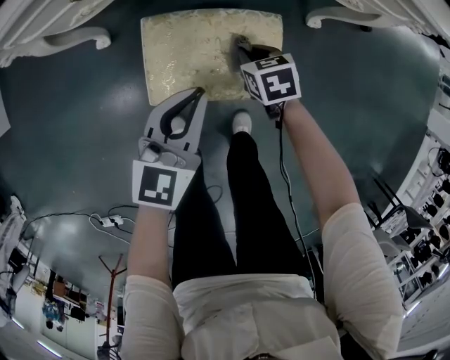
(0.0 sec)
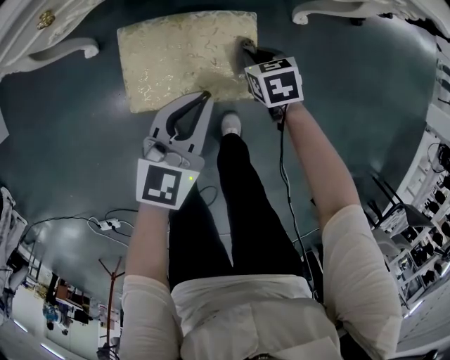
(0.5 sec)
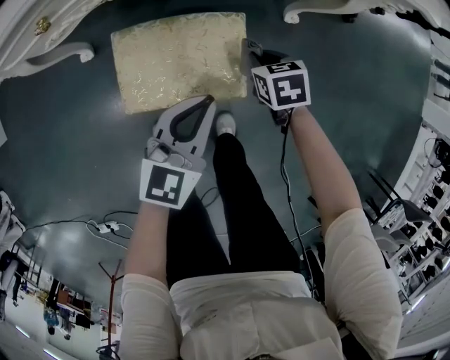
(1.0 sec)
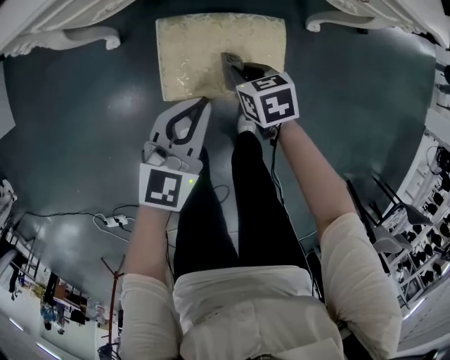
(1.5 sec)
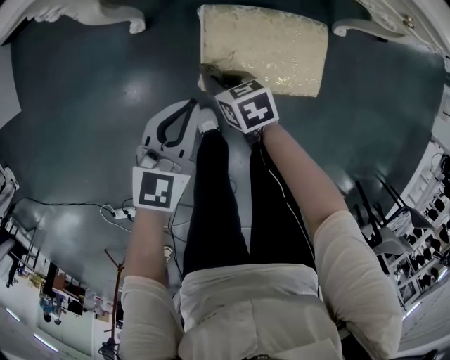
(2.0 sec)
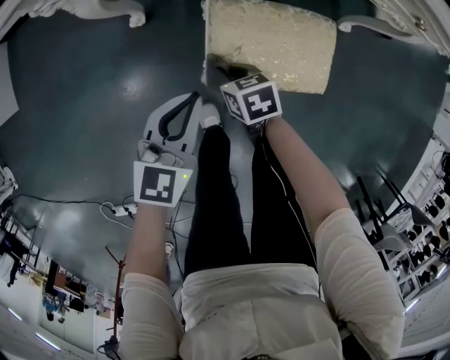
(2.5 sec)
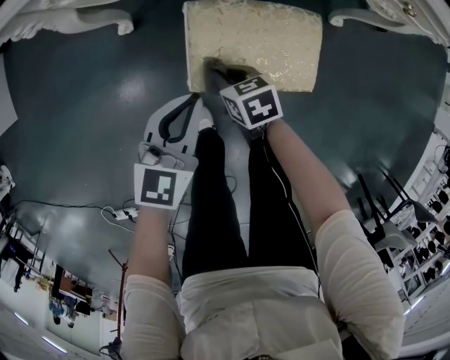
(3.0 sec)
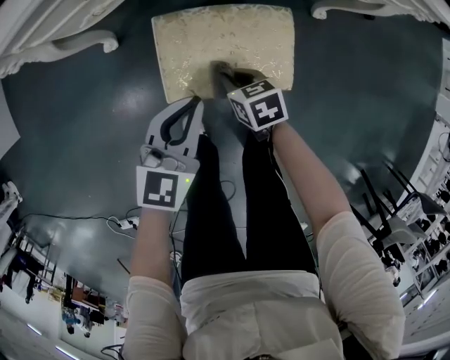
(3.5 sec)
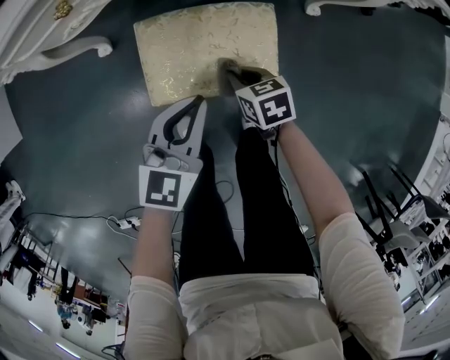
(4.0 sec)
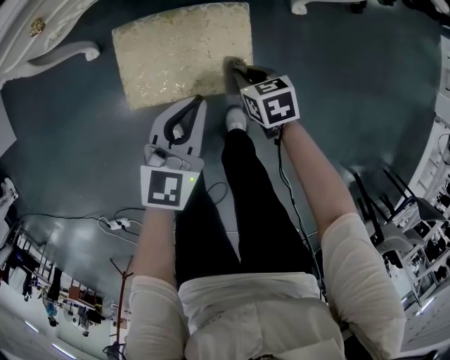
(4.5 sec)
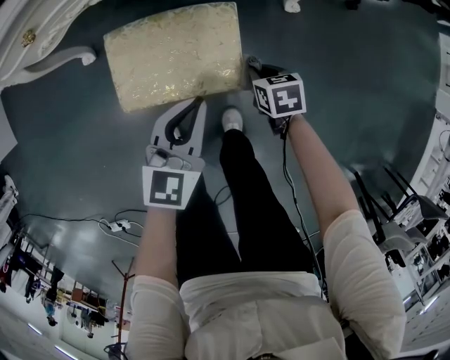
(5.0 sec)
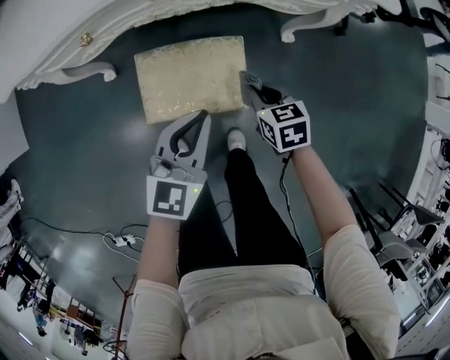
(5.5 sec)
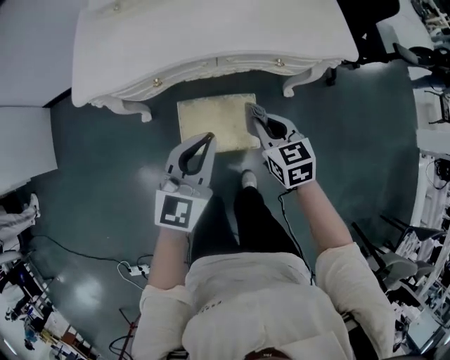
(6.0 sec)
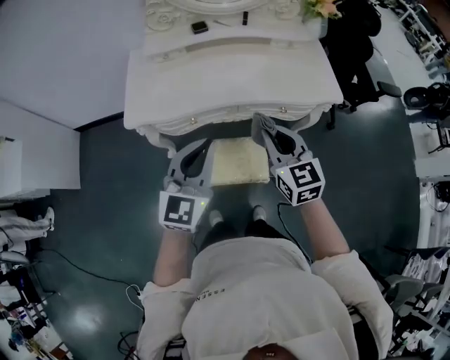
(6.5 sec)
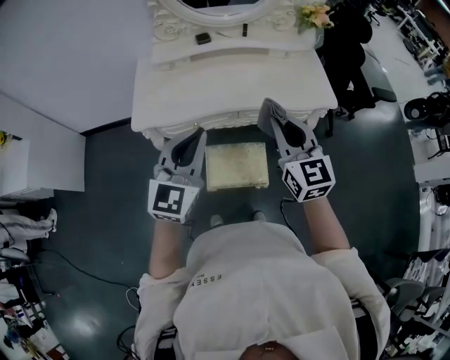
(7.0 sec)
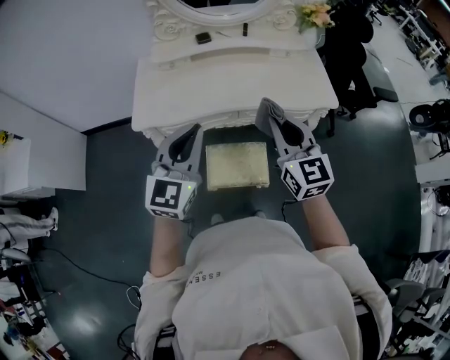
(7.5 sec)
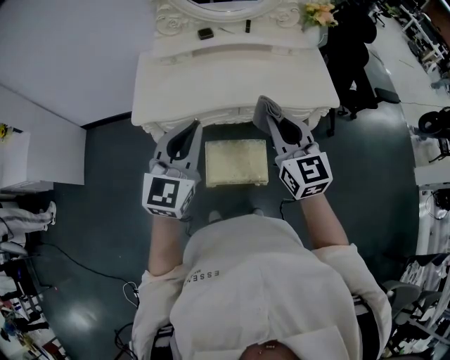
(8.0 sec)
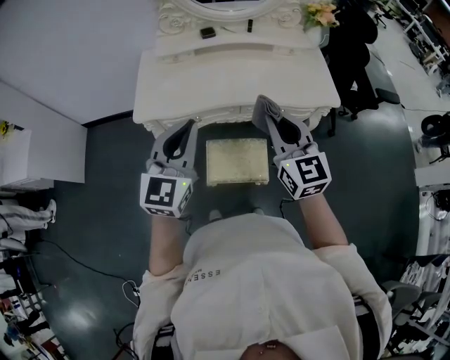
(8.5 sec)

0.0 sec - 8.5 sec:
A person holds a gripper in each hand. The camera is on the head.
0.0 sec - 2.0 sec: The two grippers go roughly 20 cm to the left.
2.0 sec - 4.0 sec: The two grippers go roughly 20 cm to the right.
4.0 sec - 6.5 sec: The grippers both shift upward by roughly 50 cm. The left gripper swivels roughly 30 degrees; the right gripper tips its fingers upward by approximately 40 degrees.
6.5 sec - 8.5 sec: Both grippers move upward, approximately 10 cm.

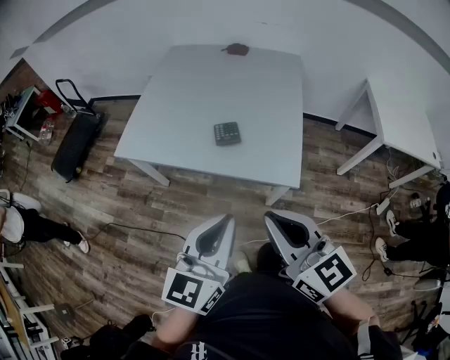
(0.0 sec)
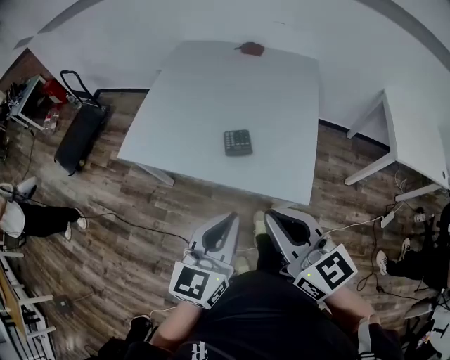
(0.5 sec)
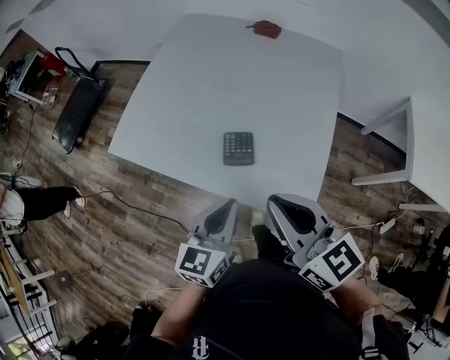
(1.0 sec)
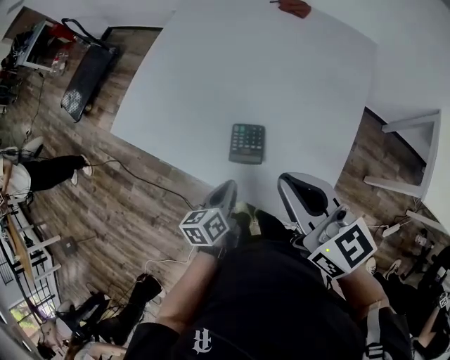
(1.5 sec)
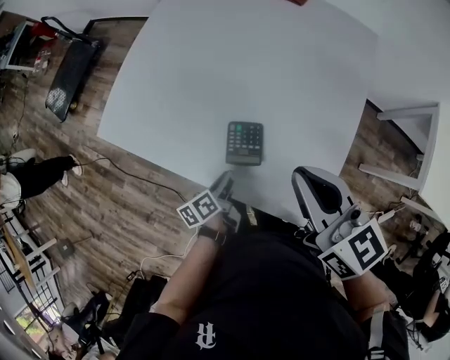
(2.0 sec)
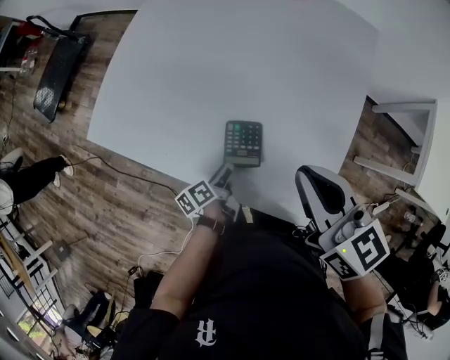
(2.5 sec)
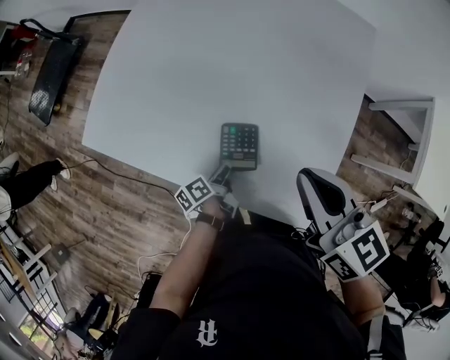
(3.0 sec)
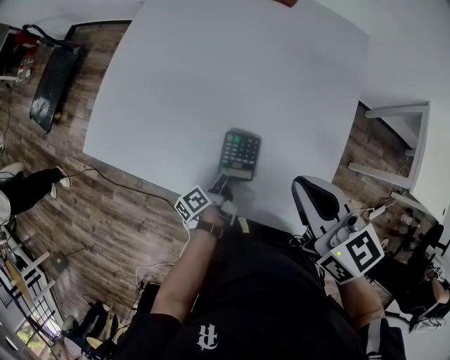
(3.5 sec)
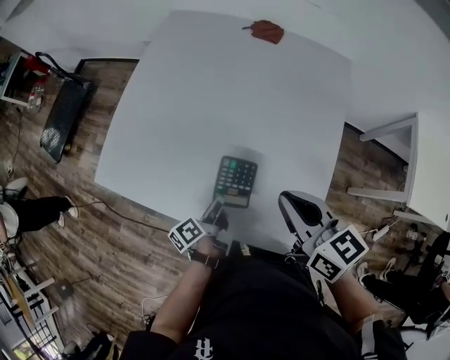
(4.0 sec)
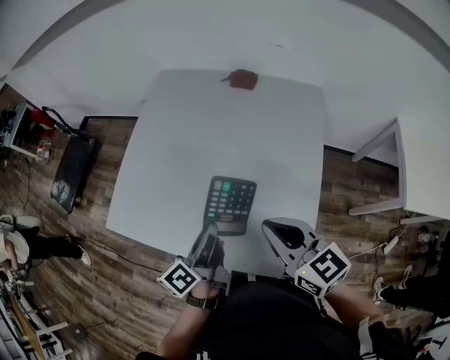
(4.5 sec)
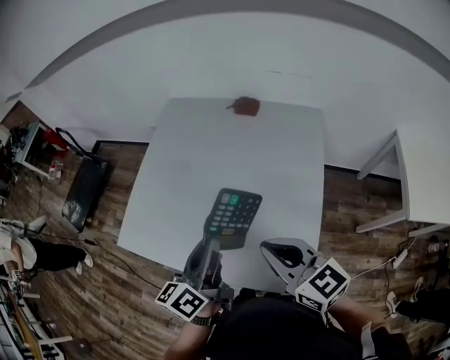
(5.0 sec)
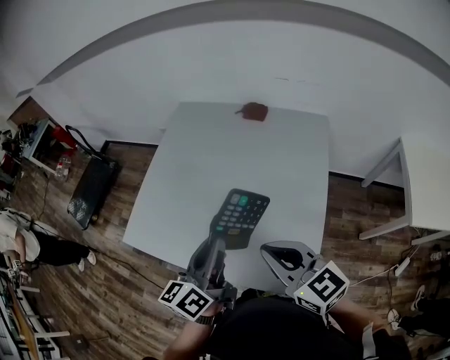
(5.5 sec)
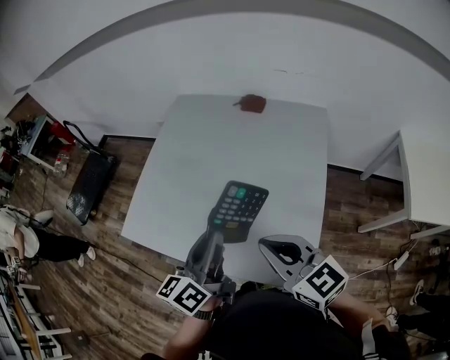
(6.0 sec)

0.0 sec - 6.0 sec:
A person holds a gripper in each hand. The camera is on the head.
0.0 sec - 2.0 sec: The right gripper travels forward by approximately 35 cm. The left gripper travels downward and forward by approximately 50 cm, and rotates around the line of its fingers by approximately 60 degrees, counterclockwise from behind.
2.0 sec - 4.0 sec: The left gripper heads forward, covering about 5 cm.
4.0 sec - 6.0 sec: The left gripper travels upward by some 30 cm, and twists roughly 40 degrees clockwise, seen from behind. Meanwhile the right gripper is displaced upward and backward by roughly 10 cm.

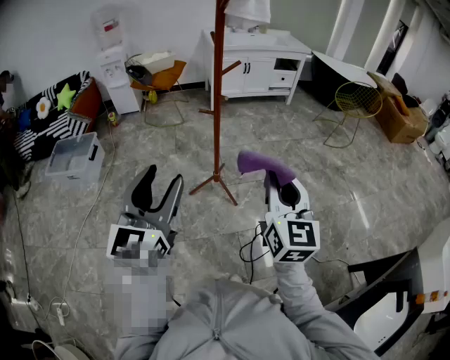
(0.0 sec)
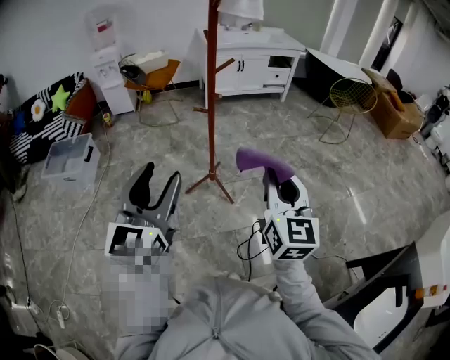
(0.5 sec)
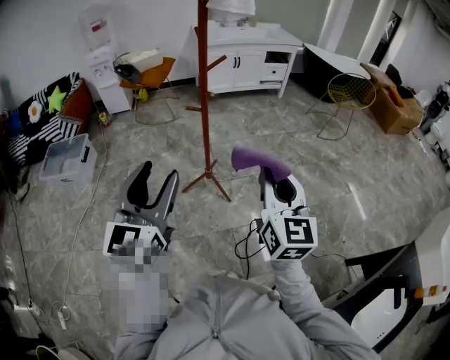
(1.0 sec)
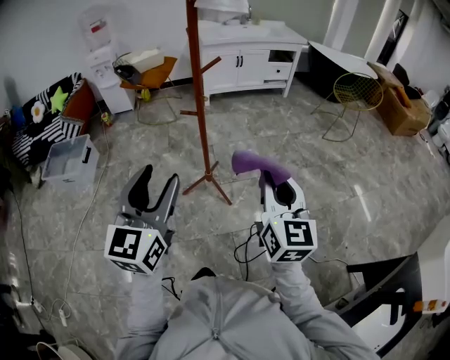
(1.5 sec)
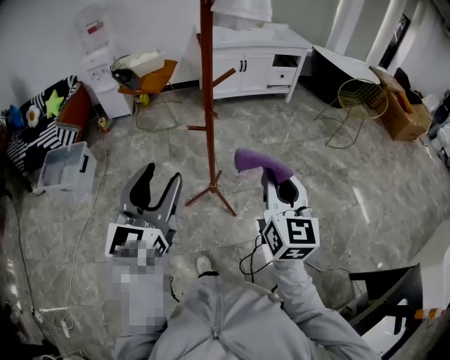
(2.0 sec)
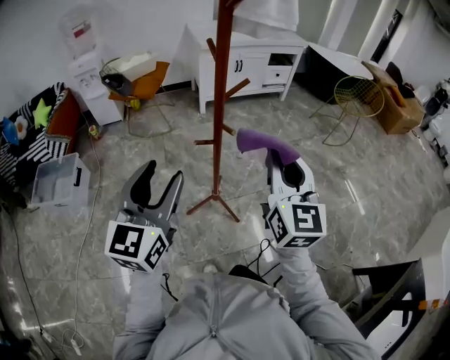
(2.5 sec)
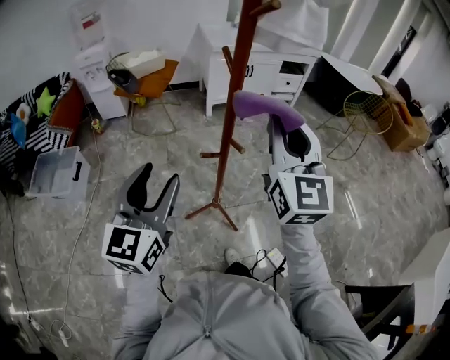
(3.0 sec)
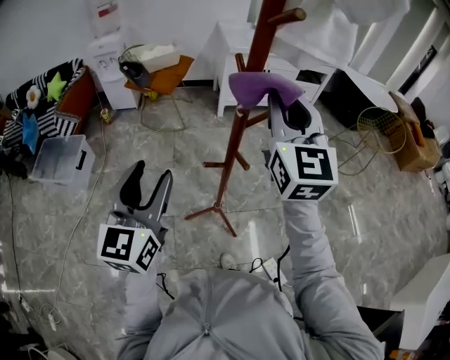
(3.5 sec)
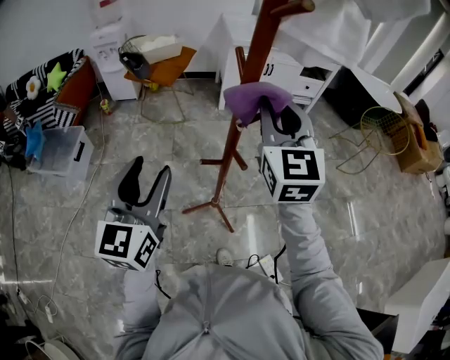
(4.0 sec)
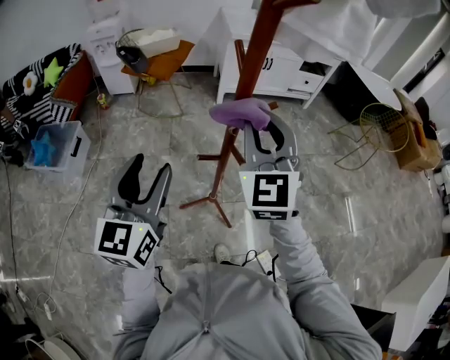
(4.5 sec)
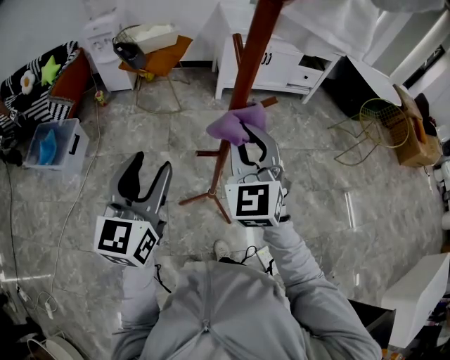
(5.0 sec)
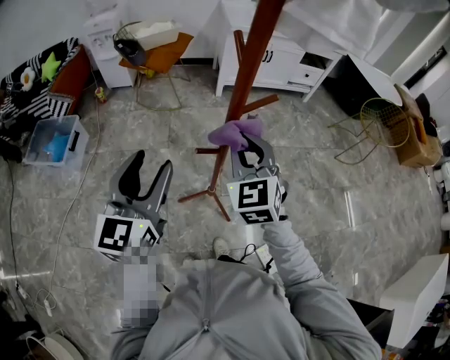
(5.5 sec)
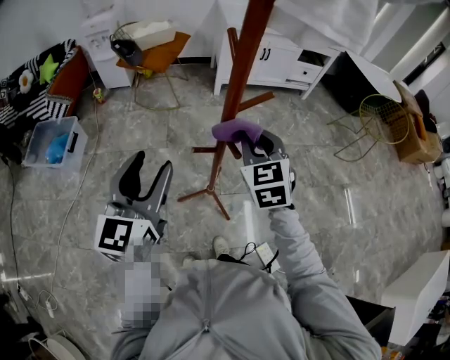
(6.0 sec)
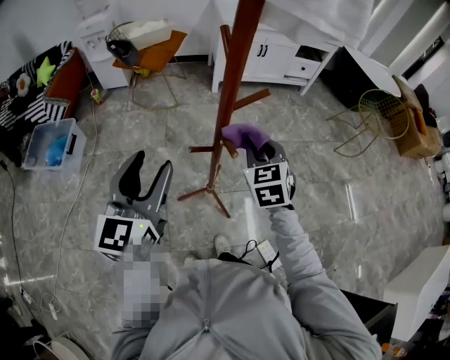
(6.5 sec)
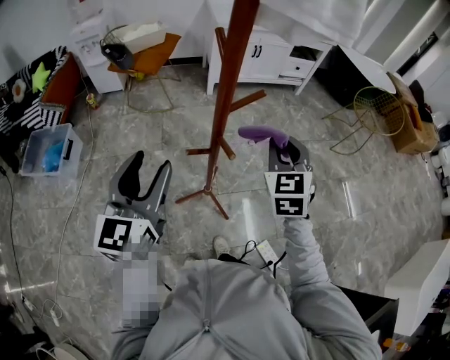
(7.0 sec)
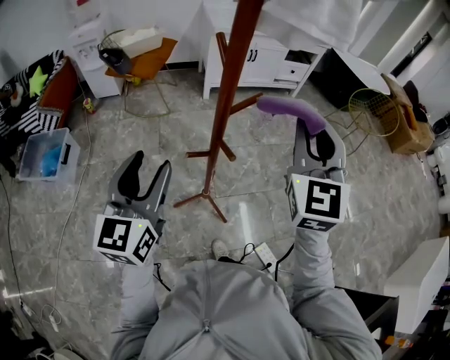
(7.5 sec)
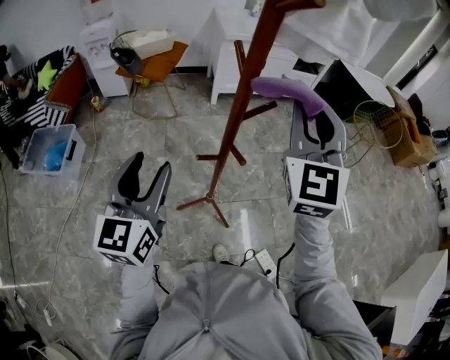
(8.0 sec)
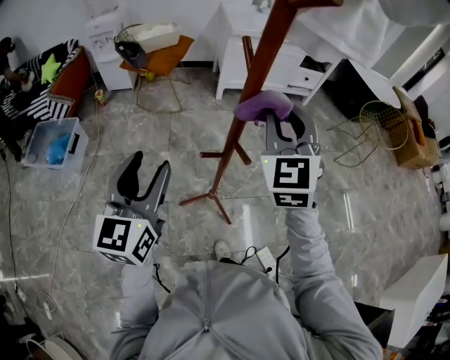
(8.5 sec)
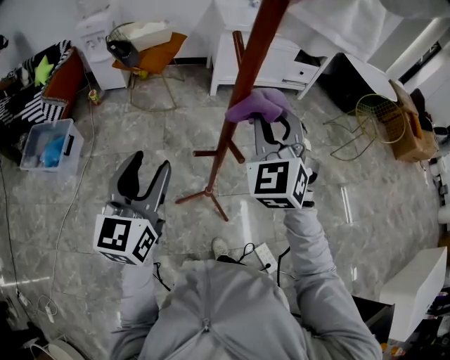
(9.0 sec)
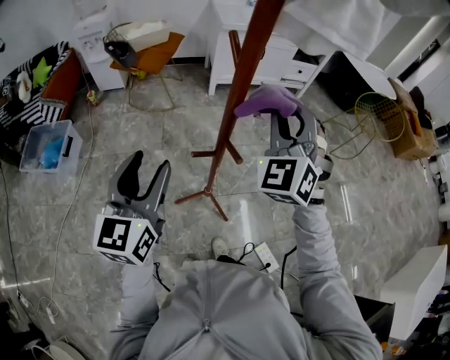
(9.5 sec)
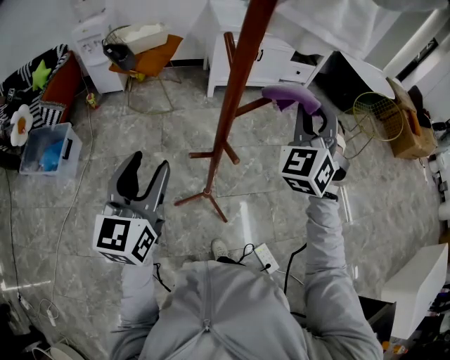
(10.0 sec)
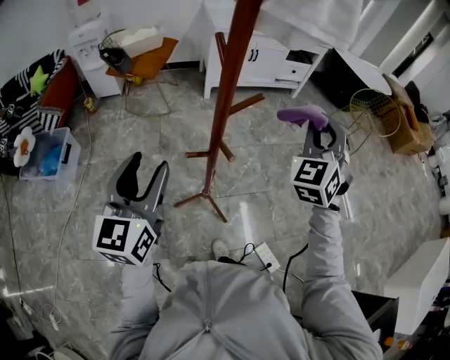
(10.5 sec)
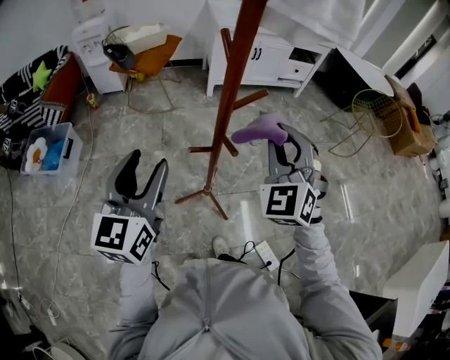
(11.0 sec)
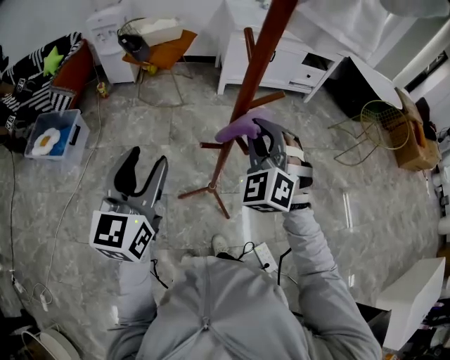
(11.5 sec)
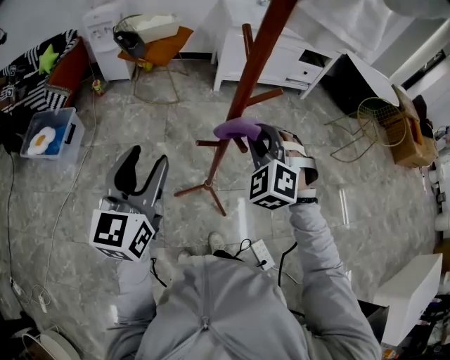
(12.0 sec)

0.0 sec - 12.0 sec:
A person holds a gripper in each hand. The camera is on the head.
0.0 sec - 2.0 sec: Both grippers travel together forward, some 15 cm.
2.0 sec - 4.0 sec: The right gripper travels forward and to the left by roughly 30 cm, and swivels roughly 20 degrees; the left gripper travels forward and to the left by some 20 cm.
4.0 sec - 6.0 sec: The right gripper heads downward, covering some 15 cm, and swivels approximately 20 degrees.
6.0 sec - 8.0 sec: The right gripper goes about 20 cm upward, and tips its fingers upward by about 30 degrees.
8.0 sec - 10.0 sec: The right gripper moves downward, forward and to the right, about 10 cm, and rotates roughly 30 degrees.
10.0 sec - 12.0 sec: The right gripper heads downward, to the left and backward, covering some 20 cm, and changes its angle by roughly 40 degrees.
